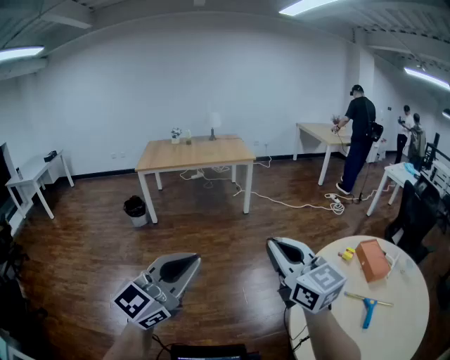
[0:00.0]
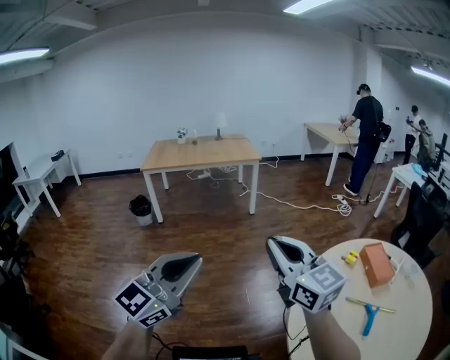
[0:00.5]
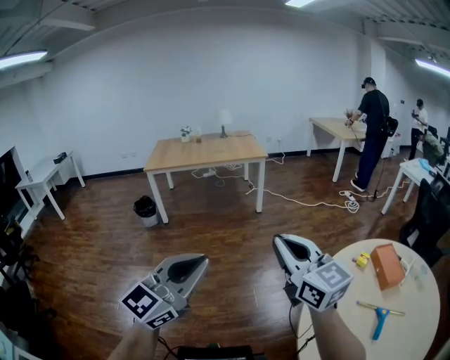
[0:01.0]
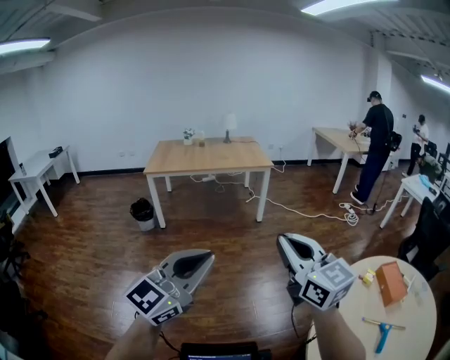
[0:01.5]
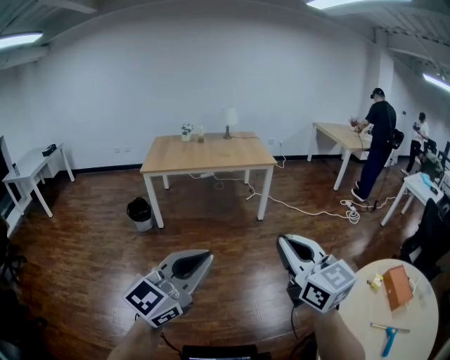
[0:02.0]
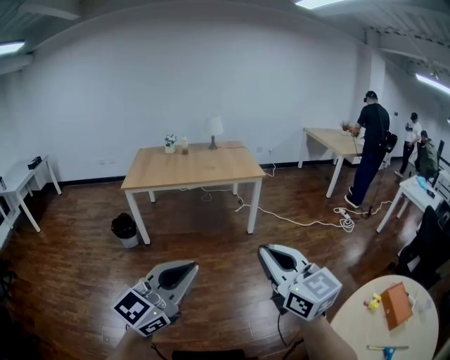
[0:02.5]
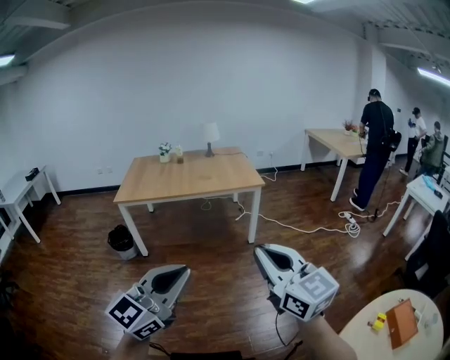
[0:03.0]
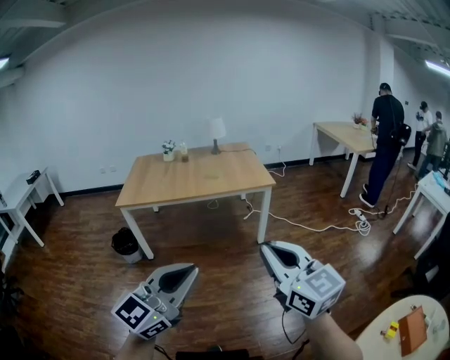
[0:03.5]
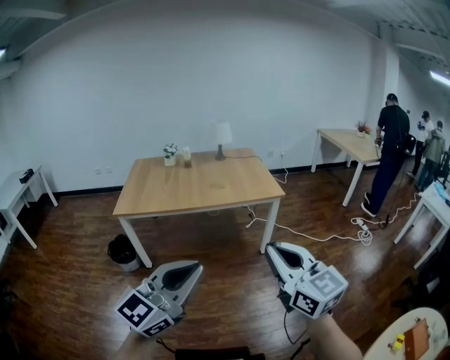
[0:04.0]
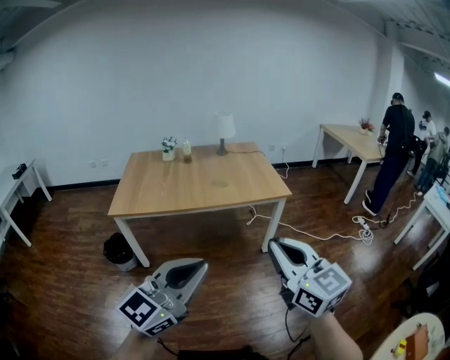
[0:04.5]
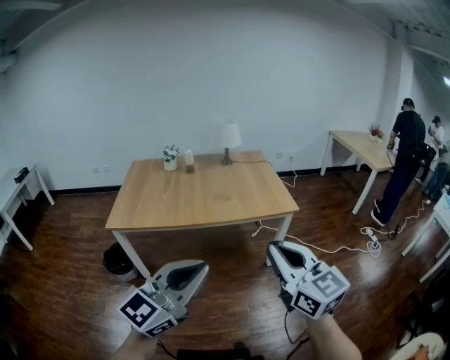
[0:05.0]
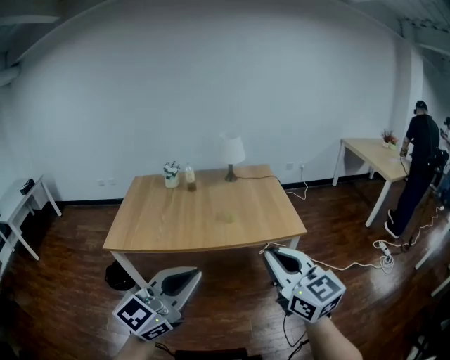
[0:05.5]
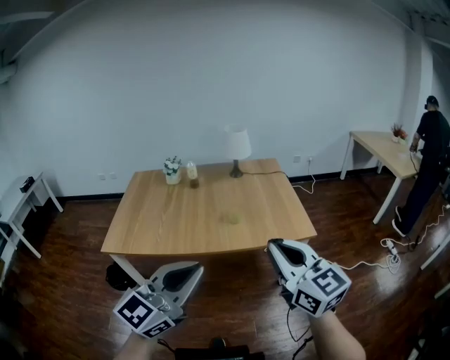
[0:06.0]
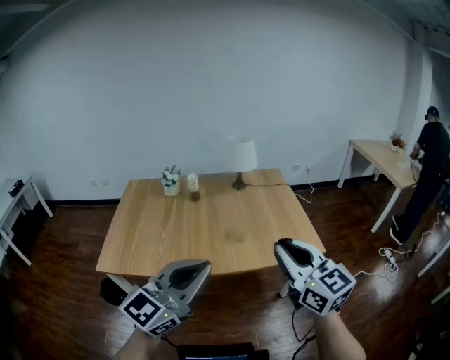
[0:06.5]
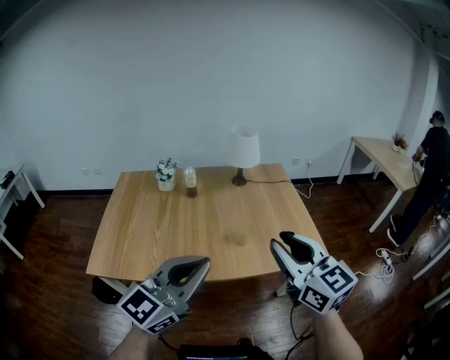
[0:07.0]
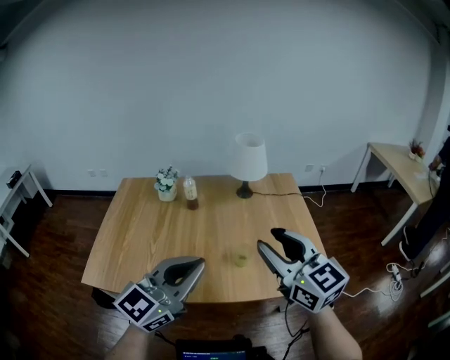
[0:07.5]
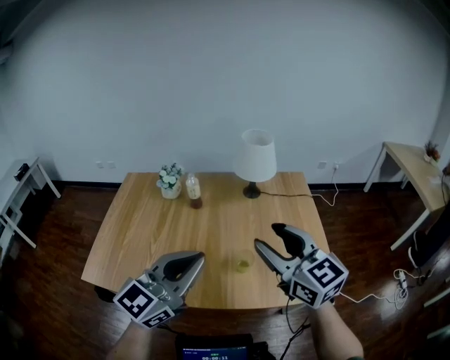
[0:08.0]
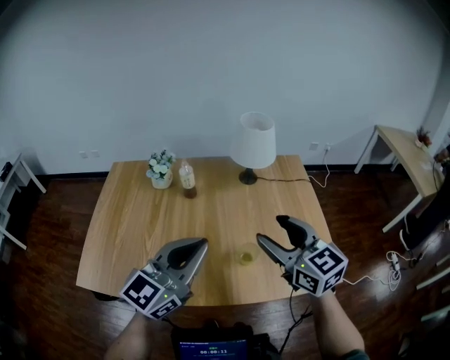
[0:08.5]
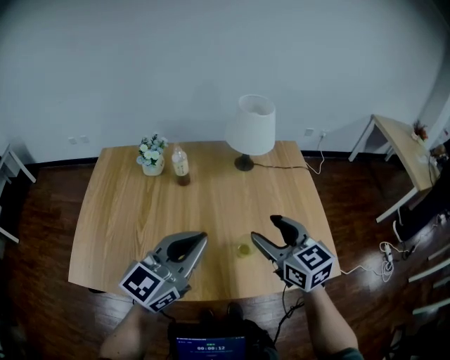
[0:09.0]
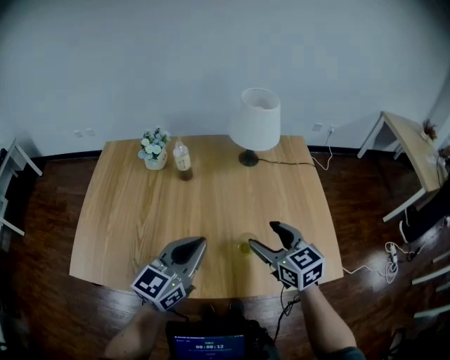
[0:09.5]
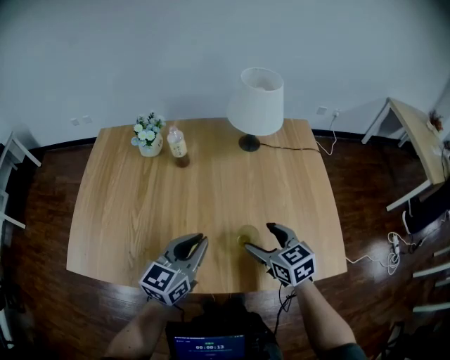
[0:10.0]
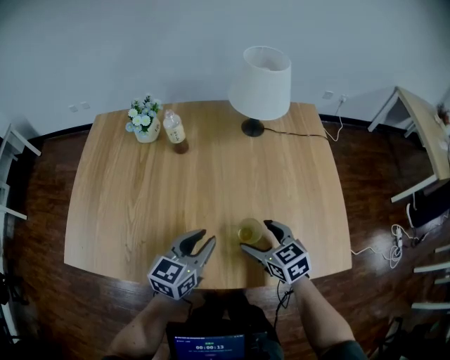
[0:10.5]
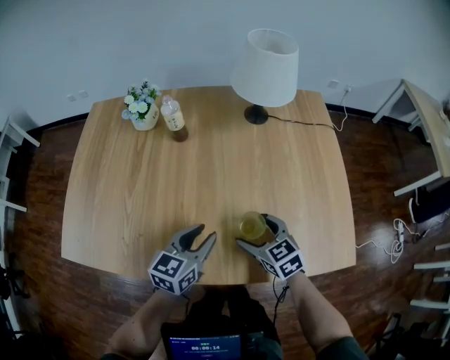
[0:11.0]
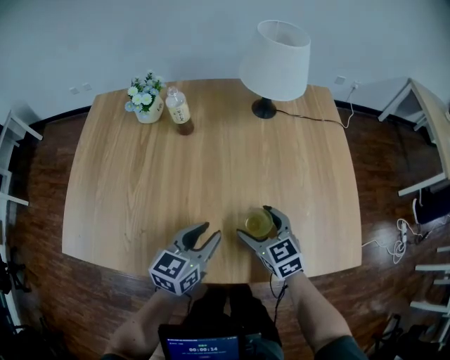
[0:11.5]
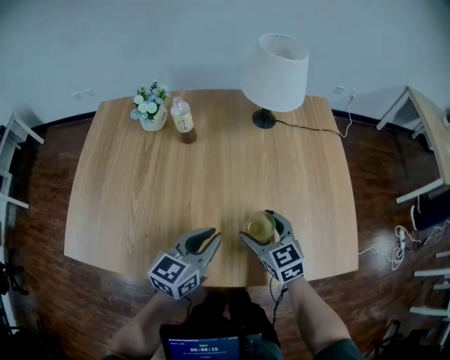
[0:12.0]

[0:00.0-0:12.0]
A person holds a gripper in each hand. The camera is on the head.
0:00.0 to 0:02.0: The two grippers go some 25 cm forward and to the left.
0:02.0 to 0:04.0: The two grippers travel together, forward, approximately 40 cm.
0:04.0 to 0:06.0: Both grippers move forward, roughly 40 cm.
0:06.0 to 0:08.0: The grippers both shift forward by roughly 35 cm. The right gripper opens its fingers.
0:08.0 to 0:10.0: The left gripper travels downward and forward by about 25 cm, and turns by approximately 20 degrees. Meanwhile the right gripper heads downward, covering roughly 25 cm, changes its angle by roughly 30 degrees, and opens up.
0:10.0 to 0:12.0: The two grippers go about 5 cm downward.

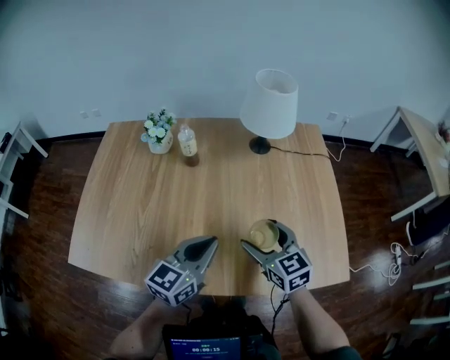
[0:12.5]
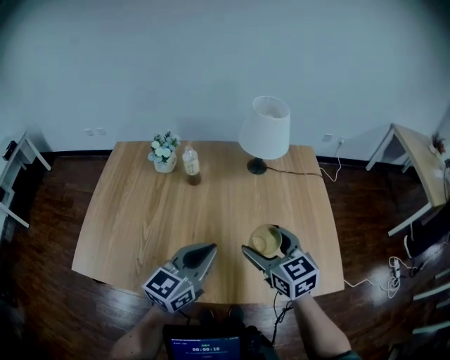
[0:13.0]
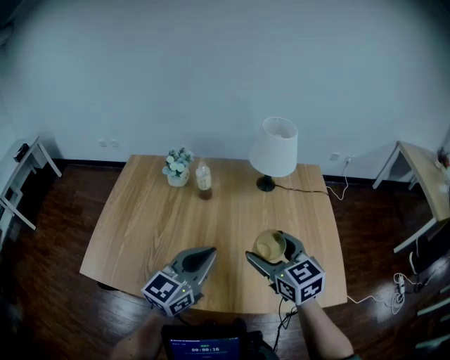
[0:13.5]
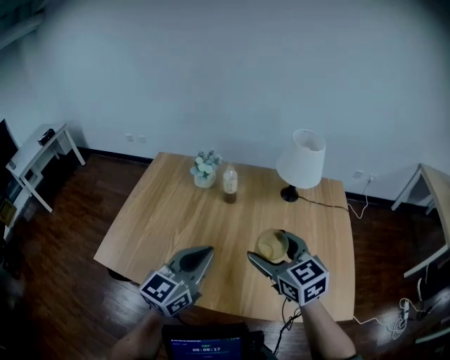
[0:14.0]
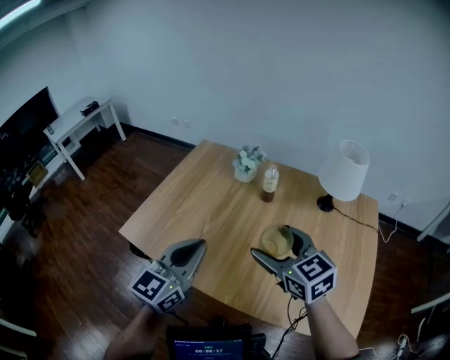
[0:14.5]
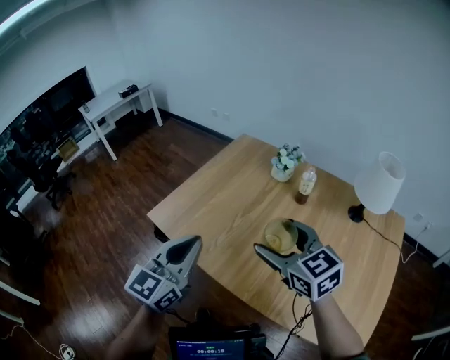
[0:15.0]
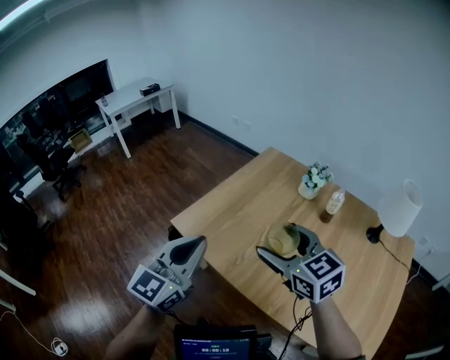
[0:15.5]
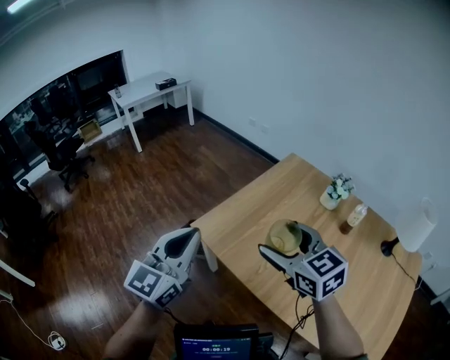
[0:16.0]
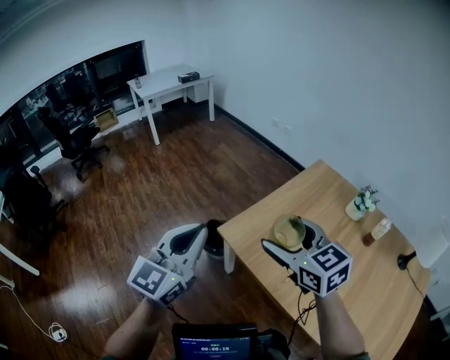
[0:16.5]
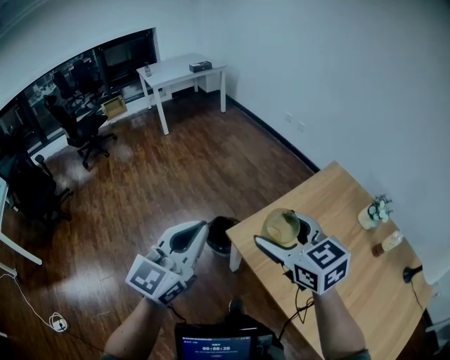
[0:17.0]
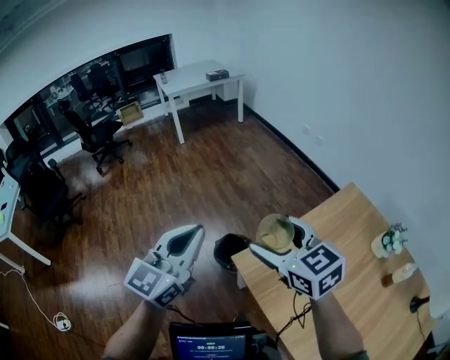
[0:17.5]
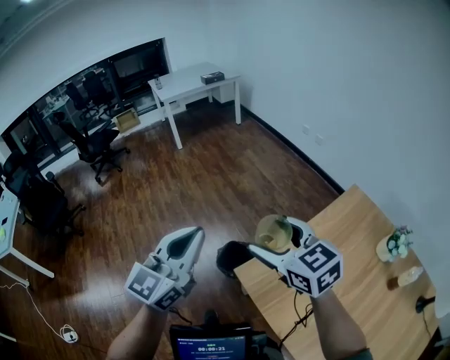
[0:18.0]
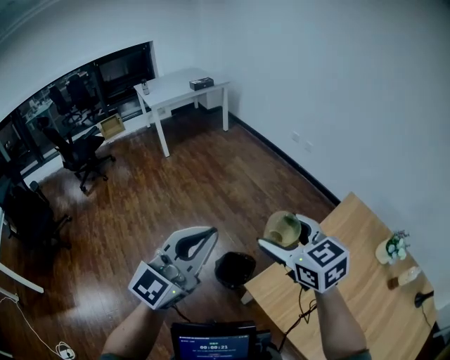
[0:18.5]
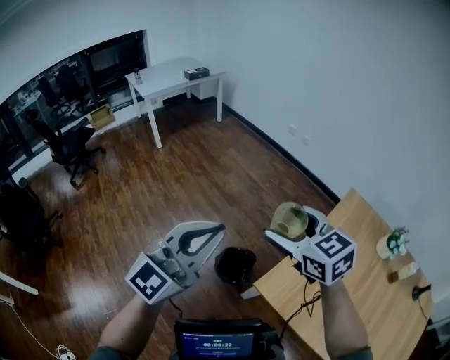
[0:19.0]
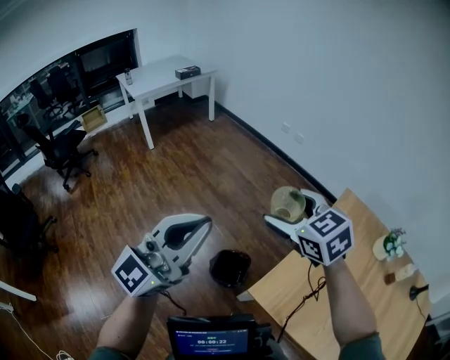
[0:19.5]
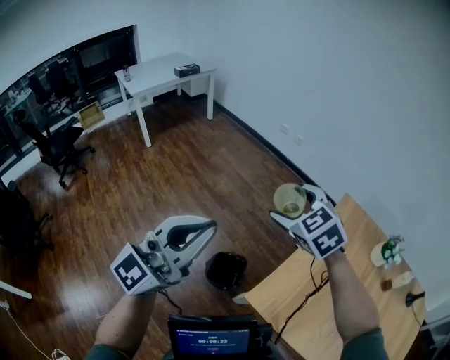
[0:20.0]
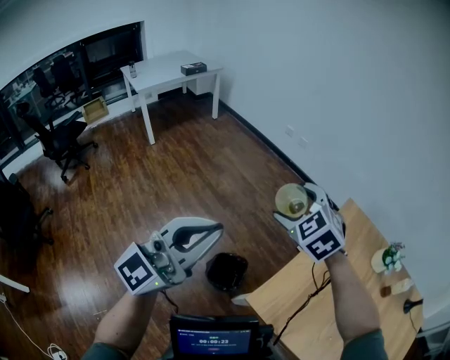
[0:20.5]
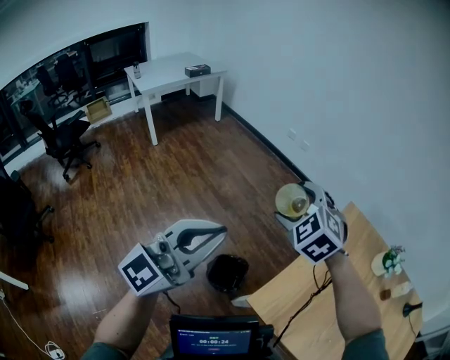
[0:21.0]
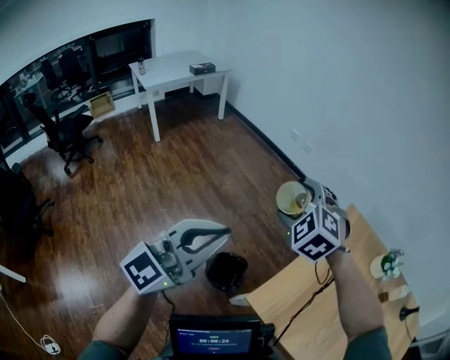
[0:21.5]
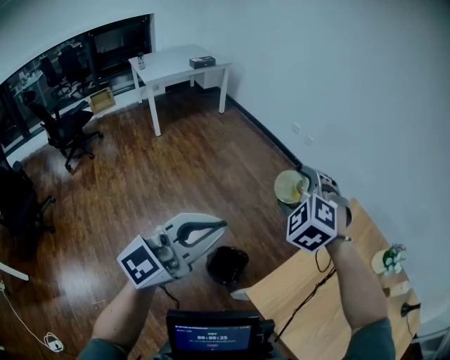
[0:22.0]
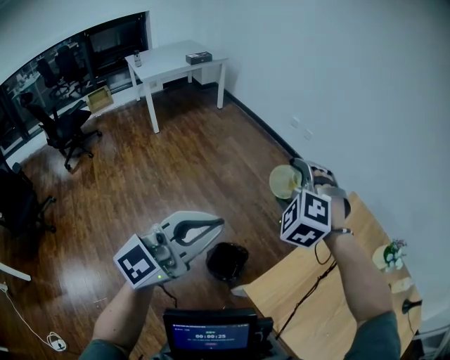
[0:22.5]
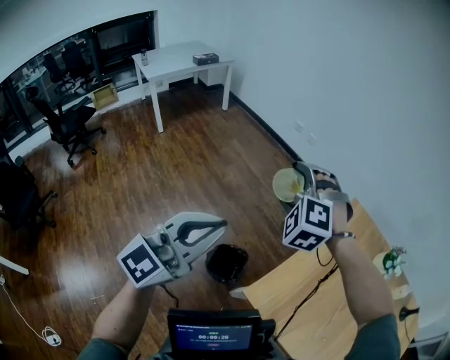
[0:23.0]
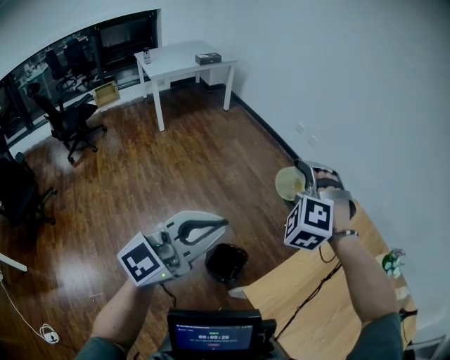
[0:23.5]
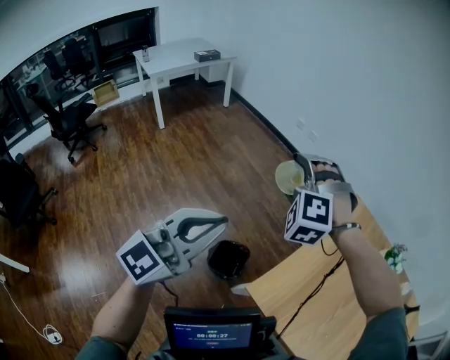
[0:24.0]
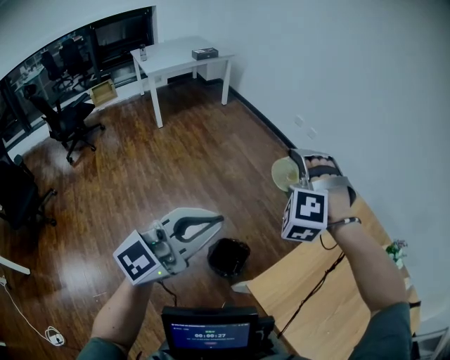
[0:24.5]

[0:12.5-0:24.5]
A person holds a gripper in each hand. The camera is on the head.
0:12.5 to 0:14.5: The left gripper changes place by about 20 cm, and changes its angle by some 30 degrees, while the right gripper travels upward by roughly 15 cm, and changes its angle by about 30 degrees.
0:14.5 to 0:16.5: The pair of grippers is taken some 40 cm. The left gripper swivels about 30 degrees, while the right gripper swivels approximately 20 degrees.
0:16.5 to 0:18.5: The right gripper travels forward and to the left by approximately 25 cm. The left gripper heads forward, covering approximately 20 cm.
0:18.5 to 0:20.5: The right gripper moves forward, approximately 15 cm, and swivels about 40 degrees, while the left gripper goes about 10 cm forward and to the left.
0:20.5 to 0:22.5: The right gripper changes its angle by some 30 degrees.
0:22.5 to 0:24.5: The grippers stay close to where they were, moving slightly.

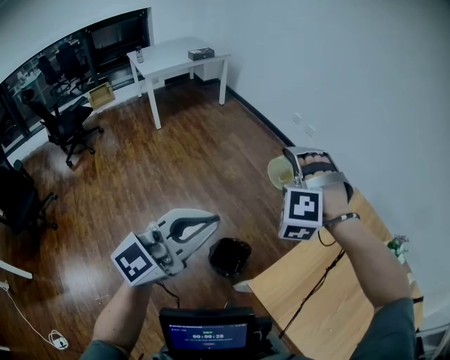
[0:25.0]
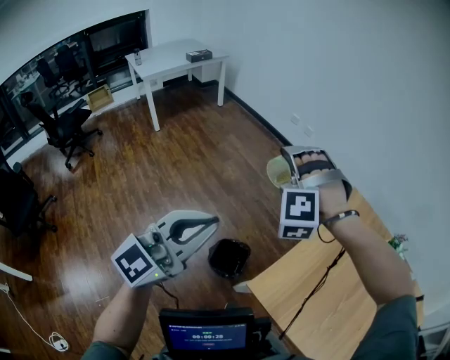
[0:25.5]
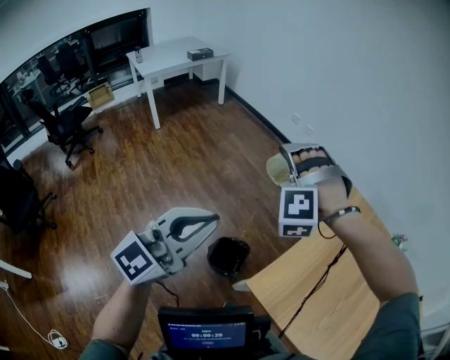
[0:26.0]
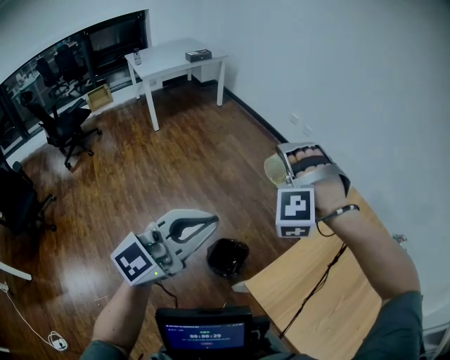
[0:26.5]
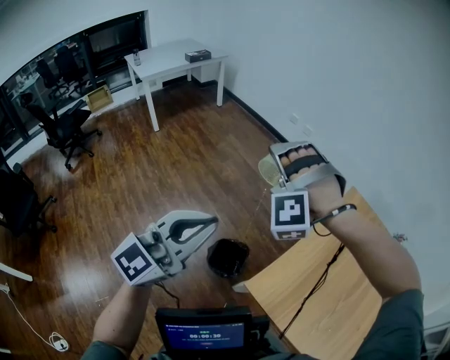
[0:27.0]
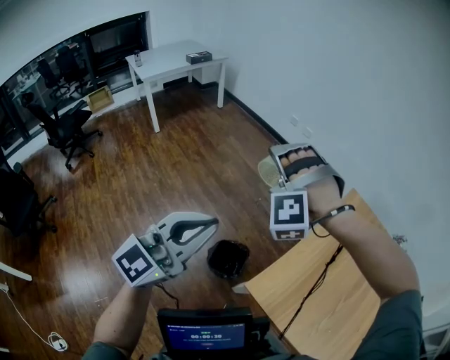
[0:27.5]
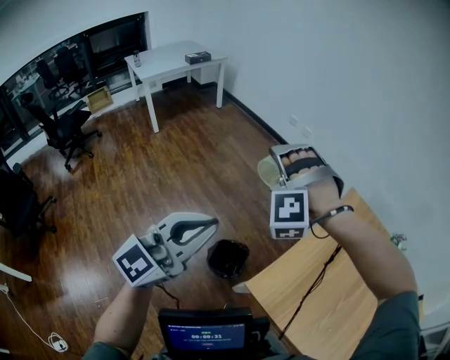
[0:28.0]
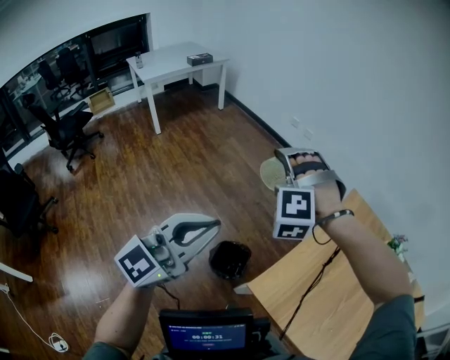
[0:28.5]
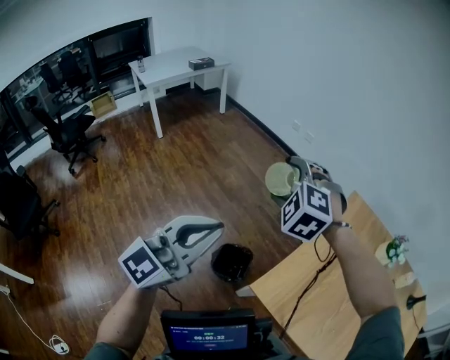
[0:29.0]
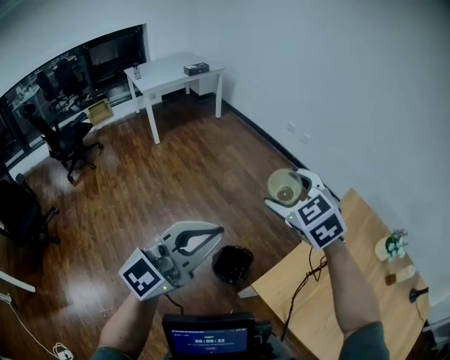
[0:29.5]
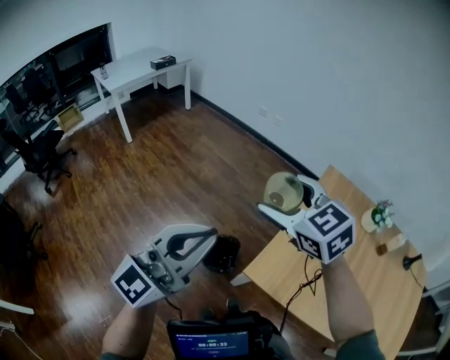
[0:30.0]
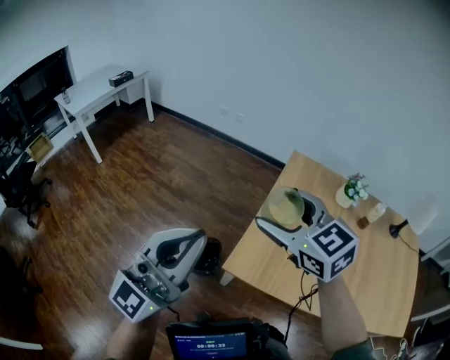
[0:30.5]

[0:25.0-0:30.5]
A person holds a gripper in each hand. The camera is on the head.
0:25.0 to 0:28.5: There are only small adjustments of the grippers.
0:28.5 to 0:30.5: The right gripper heads to the right and backward, covering about 25 cm, and rolls clockwise, seen from behind, by roughly 80 degrees; the left gripper is displaced backward, to the right and upward by about 10 cm, and rotates some 20 degrees.
